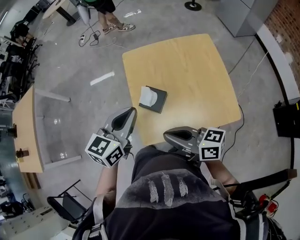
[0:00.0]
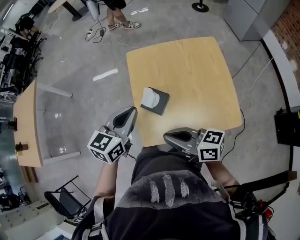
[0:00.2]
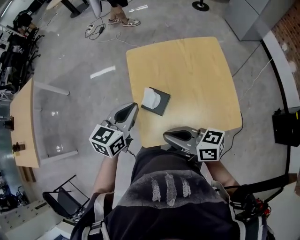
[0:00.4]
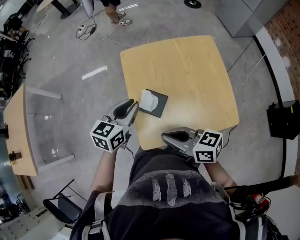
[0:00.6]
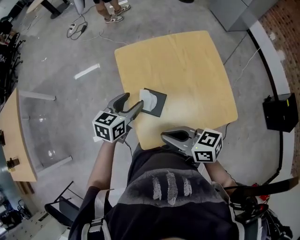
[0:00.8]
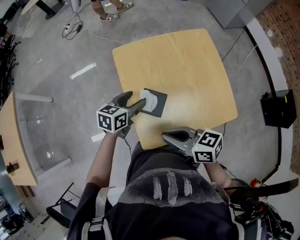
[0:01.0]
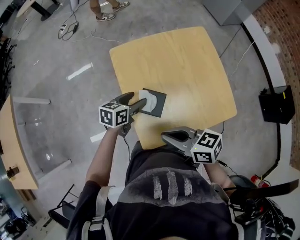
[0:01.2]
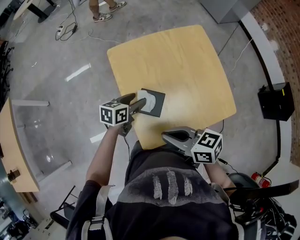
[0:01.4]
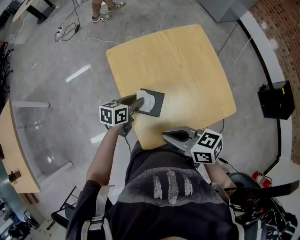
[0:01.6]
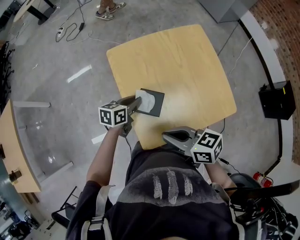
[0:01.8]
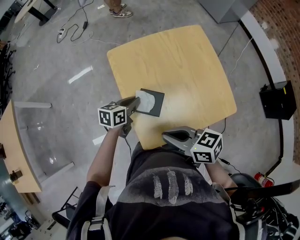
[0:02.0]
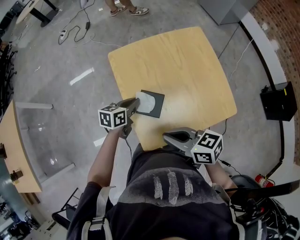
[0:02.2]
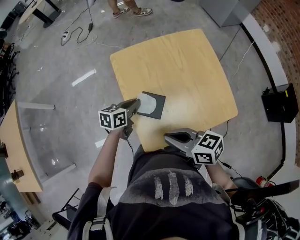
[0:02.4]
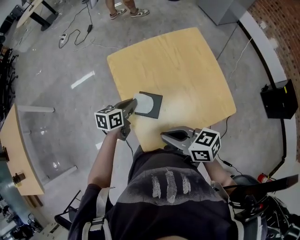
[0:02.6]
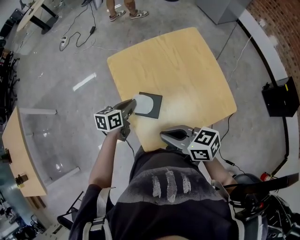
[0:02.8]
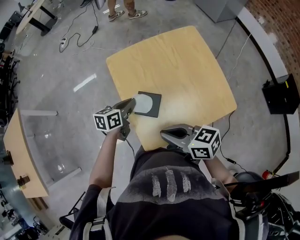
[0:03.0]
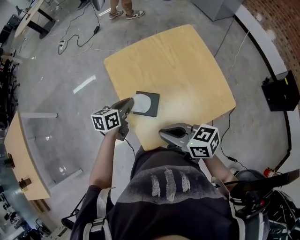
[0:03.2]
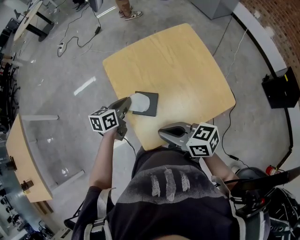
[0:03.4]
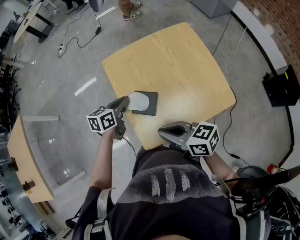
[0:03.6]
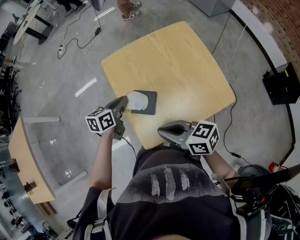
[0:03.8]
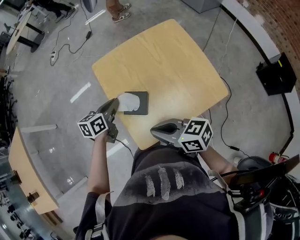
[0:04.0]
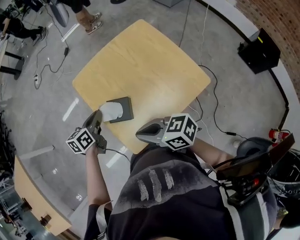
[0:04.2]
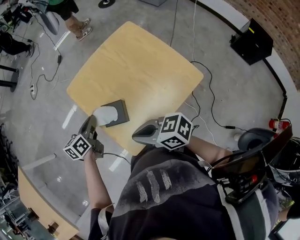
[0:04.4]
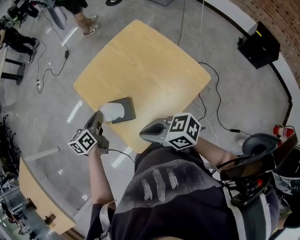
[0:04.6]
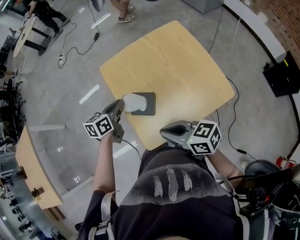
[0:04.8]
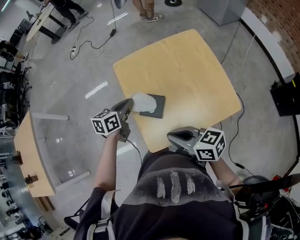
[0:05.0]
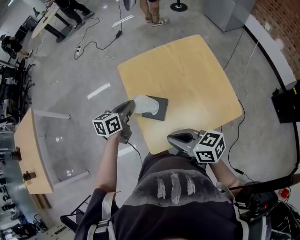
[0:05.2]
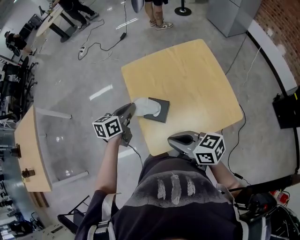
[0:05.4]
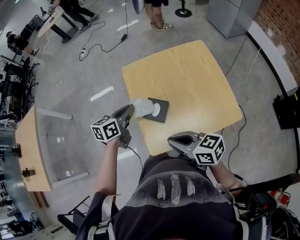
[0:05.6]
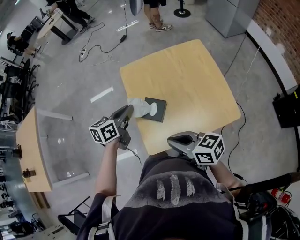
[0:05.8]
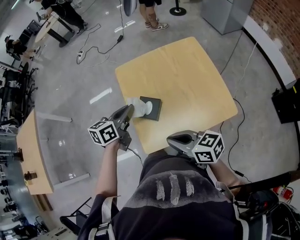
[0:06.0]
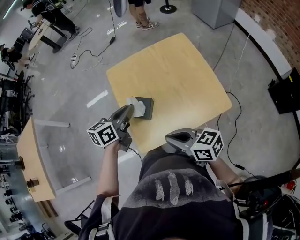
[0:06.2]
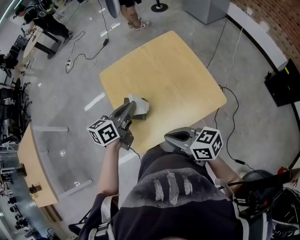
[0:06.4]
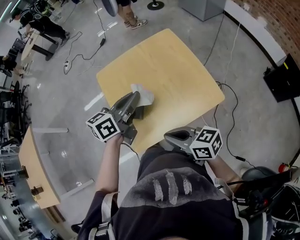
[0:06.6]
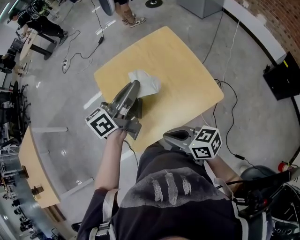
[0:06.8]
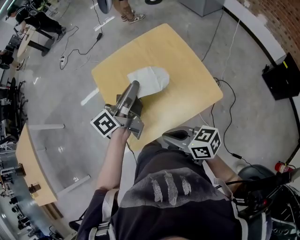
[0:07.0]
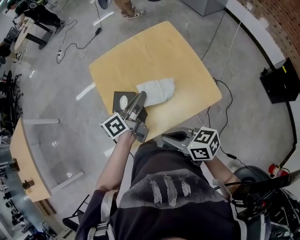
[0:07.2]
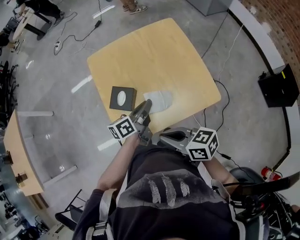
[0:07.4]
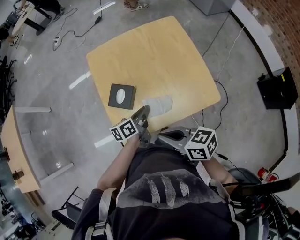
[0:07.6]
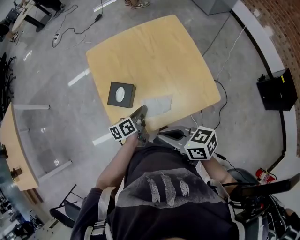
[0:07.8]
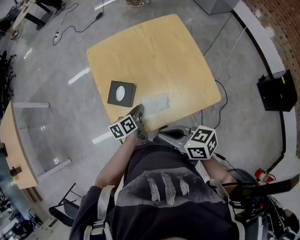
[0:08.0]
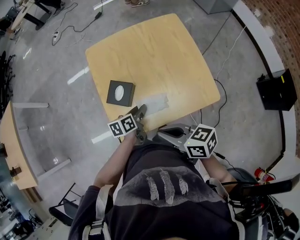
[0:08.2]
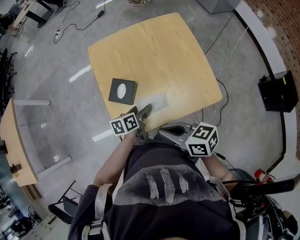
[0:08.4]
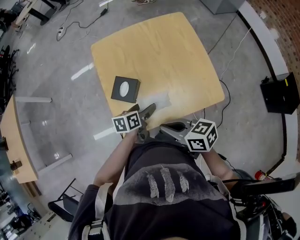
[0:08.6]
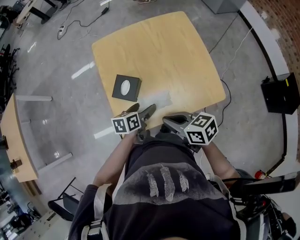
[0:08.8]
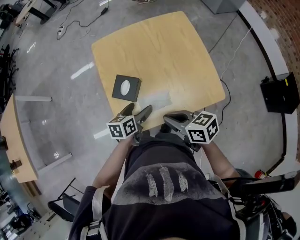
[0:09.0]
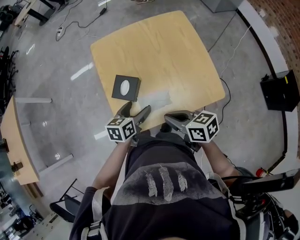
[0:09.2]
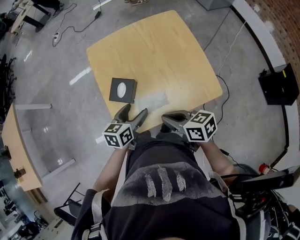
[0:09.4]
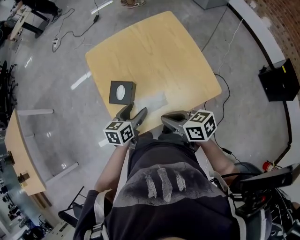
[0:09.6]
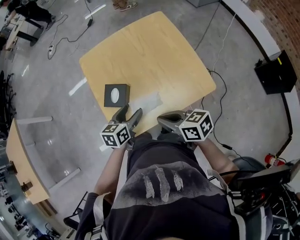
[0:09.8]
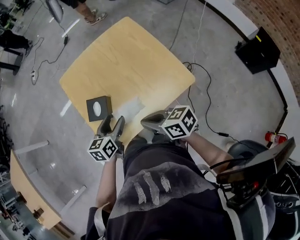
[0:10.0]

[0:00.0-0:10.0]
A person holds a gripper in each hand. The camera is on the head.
0:00.0 to 0:01.4: The left gripper is displaced downward and forward by about 25 cm, turns by about 30 degrees, and opens its fingers, while the right gripper shifts approximately 5 cm forward and downward.
0:01.4 to 0:02.8: The left gripper closes its fingers.
0:02.8 to 0:04.2: There are only small adjustments of the grippers.
0:04.2 to 0:05.8: The left gripper is displaced upward by about 5 cm.
0:05.8 to 0:07.2: The left gripper heads to the right, covering some 20 cm, and changes its angle by roughly 30 degrees. Meanwhile the right gripper moves to the right, some 10 cm.
0:07.2 to 0:08.6: The left gripper is displaced downward by about 15 cm, angles its fingers downward, by approximately 40 degrees, and opens up.
0:08.6 to 0:10.0: The left gripper is displaced upward by some 10 cm, and rotates roughly 30 degrees.

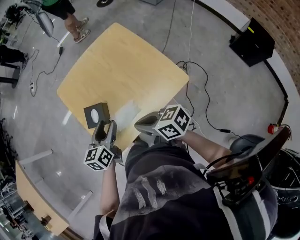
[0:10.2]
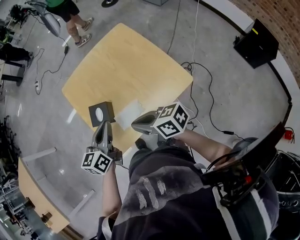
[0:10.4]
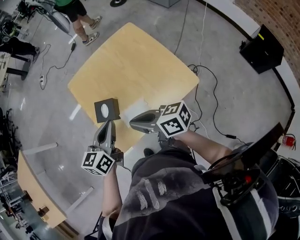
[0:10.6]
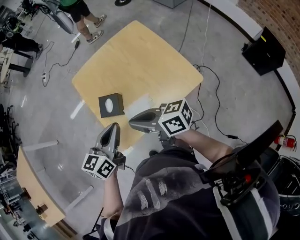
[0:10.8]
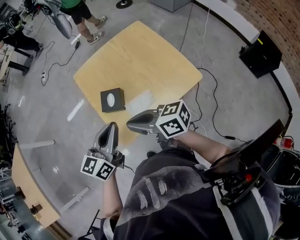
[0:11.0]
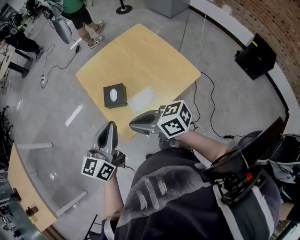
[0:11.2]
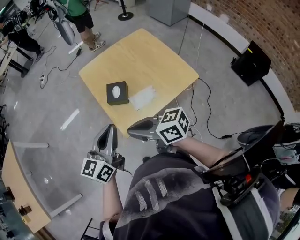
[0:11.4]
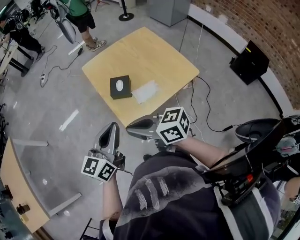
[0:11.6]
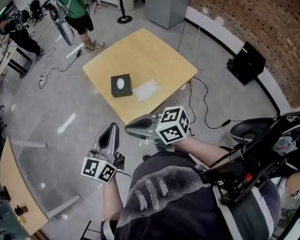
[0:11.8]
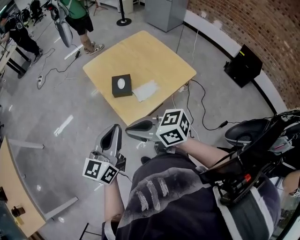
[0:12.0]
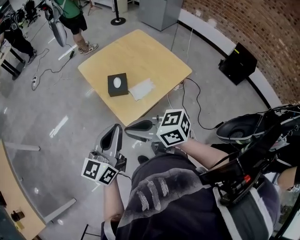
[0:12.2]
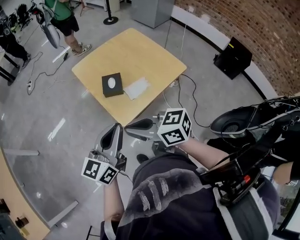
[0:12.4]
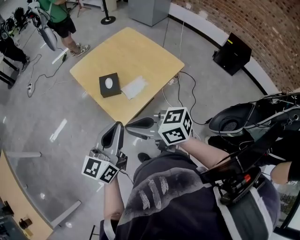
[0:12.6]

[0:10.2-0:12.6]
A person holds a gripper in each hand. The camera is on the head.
0:10.2 to 0:11.4: The left gripper shifts approximately 20 cm to the left, upward and backward, turns by about 20 degrees, and closes up. The right gripper travels to the left and upward by roughly 20 cm.
0:11.4 to 0:12.6: The grippers both shift backward by roughly 5 cm.

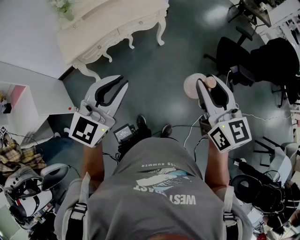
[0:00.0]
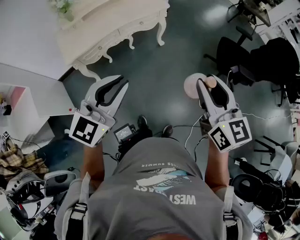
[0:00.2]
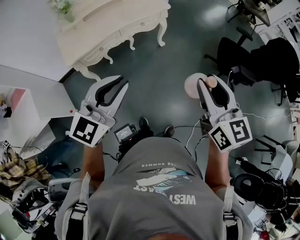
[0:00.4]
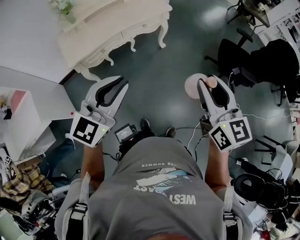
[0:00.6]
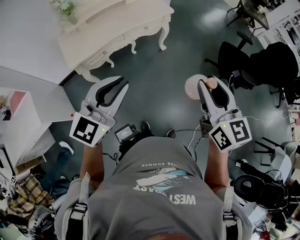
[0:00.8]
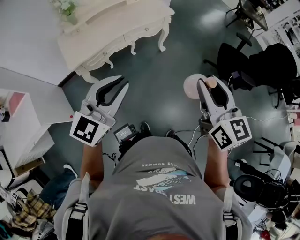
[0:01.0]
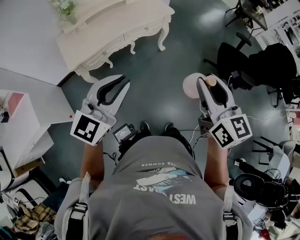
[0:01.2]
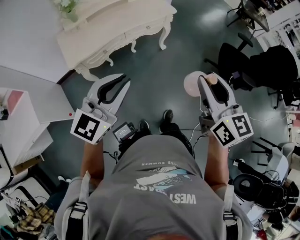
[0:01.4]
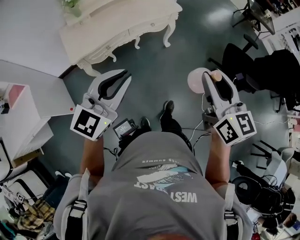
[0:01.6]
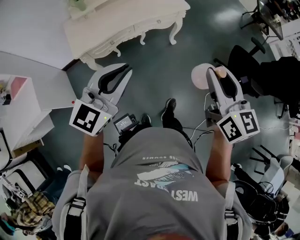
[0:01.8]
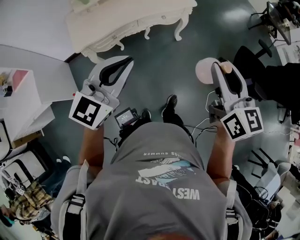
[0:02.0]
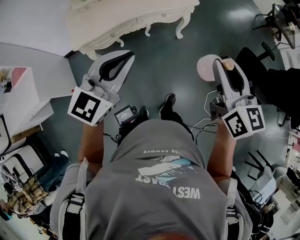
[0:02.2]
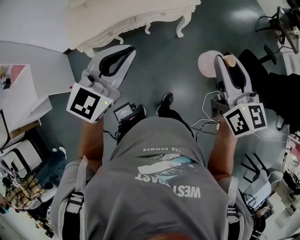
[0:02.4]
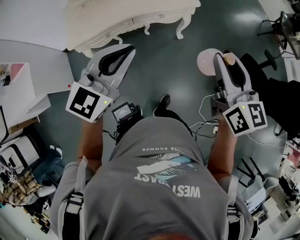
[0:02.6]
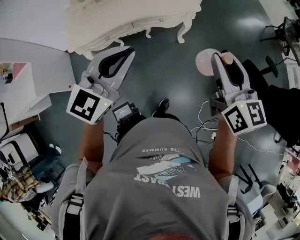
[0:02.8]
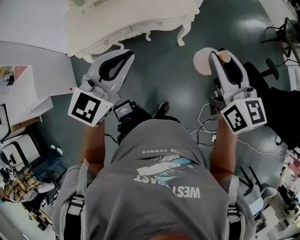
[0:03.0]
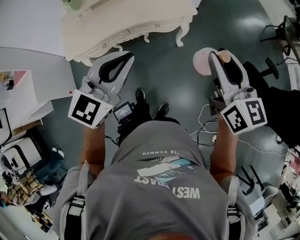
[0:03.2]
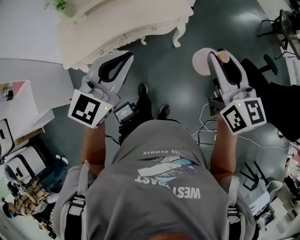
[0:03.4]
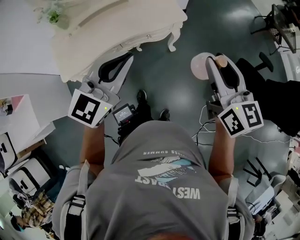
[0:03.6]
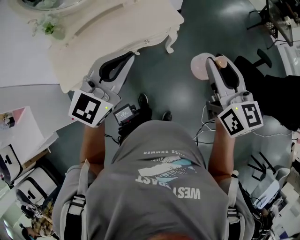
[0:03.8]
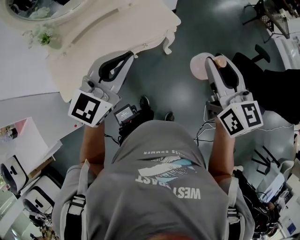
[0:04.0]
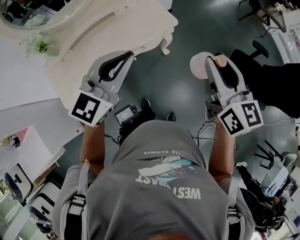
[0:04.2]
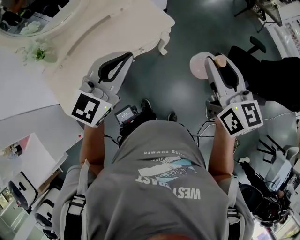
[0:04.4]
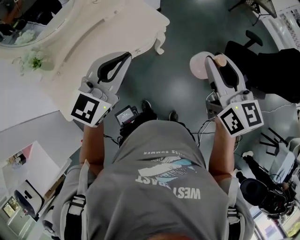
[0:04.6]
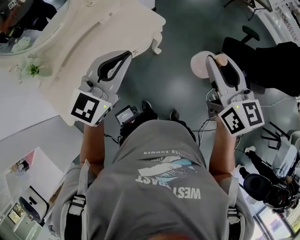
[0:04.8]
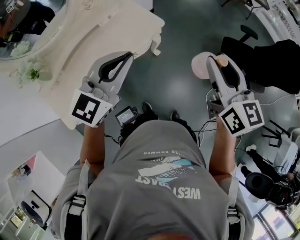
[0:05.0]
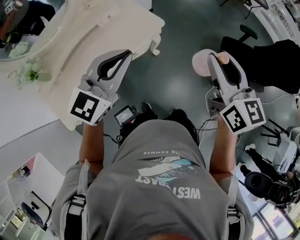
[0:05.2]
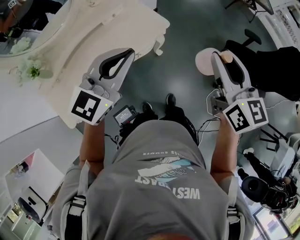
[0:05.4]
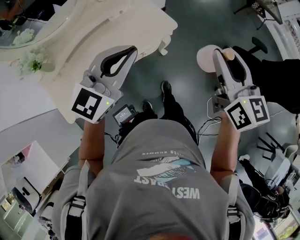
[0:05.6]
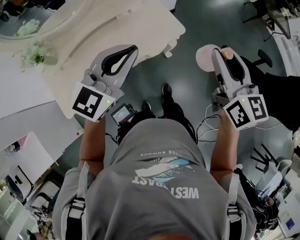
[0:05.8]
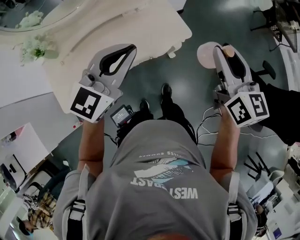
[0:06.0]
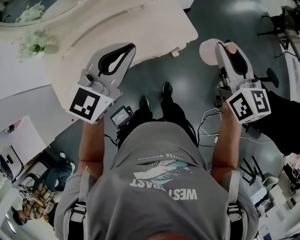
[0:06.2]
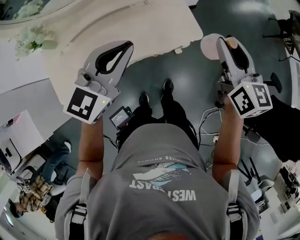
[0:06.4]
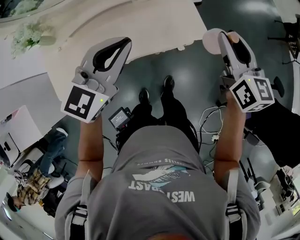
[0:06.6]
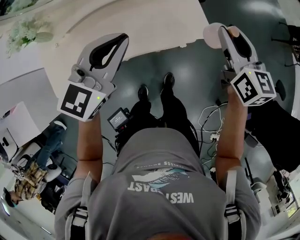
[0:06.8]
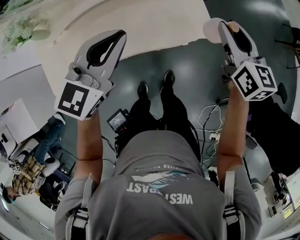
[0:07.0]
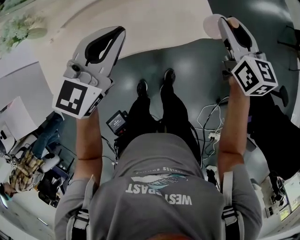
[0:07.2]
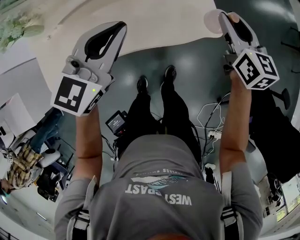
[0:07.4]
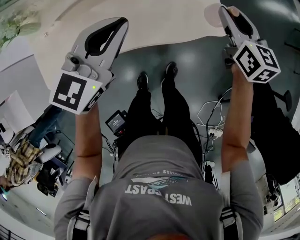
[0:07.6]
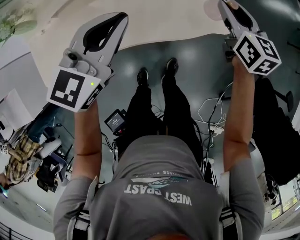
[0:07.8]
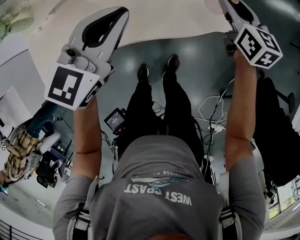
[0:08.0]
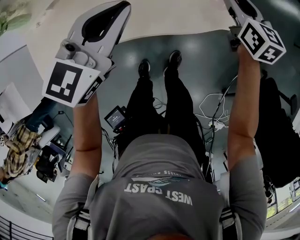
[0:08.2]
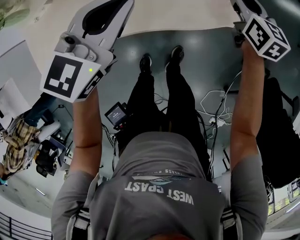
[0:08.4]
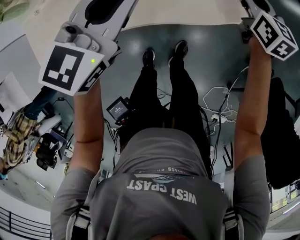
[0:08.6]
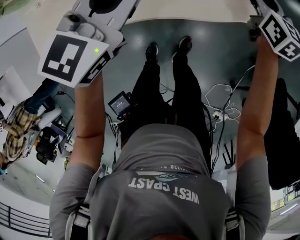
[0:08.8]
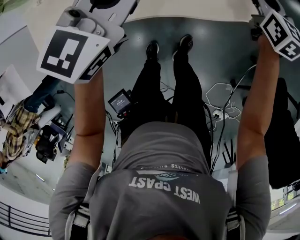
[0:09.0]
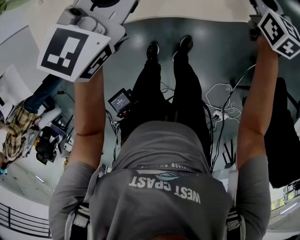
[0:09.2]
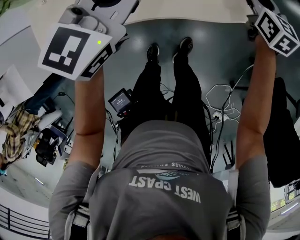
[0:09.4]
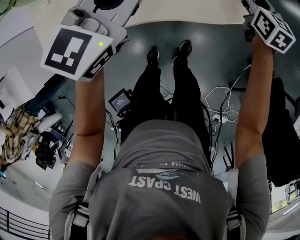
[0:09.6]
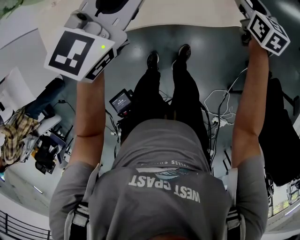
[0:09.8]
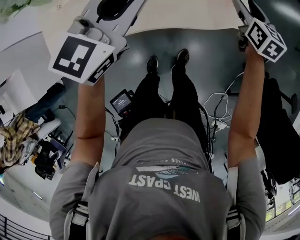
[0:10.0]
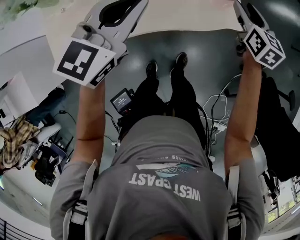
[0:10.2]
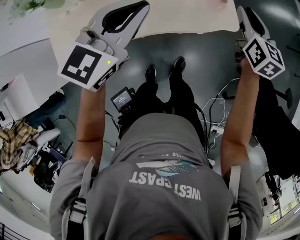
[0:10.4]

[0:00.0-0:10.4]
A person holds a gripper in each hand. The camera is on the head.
0:00.0 to 0:01.4: The left gripper travels to the left by roughly 10 cm. Meanwhile the right gripper moves to the left and forward, approximately 15 cm.
0:01.4 to 0:03.0: The right gripper heads forward, covering roughly 30 cm. The left gripper shifts roughly 30 cm forward and to the right.
0:03.0 to 0:04.4: The left gripper heads forward, covering roughly 20 cm, and turns by some 20 degrees, while the right gripper travels forward by about 15 cm, and swivels about 20 degrees.
0:04.4 to 0:06.0: The two grippers go roughly 20 cm forward and to the left.
0:06.0 to 0:07.4: The left gripper goes about 25 cm downward, forward and to the left, and turns by approximately 20 degrees. The right gripper moves downward and forward, about 35 cm.
0:07.4 to 0:09.0: The two grippers go about 15 cm downward.
0:09.0 to 0:10.4: The right gripper is displaced upward, backward and to the right by approximately 20 cm, and opens, then closes again; the left gripper goes about 15 cm upward and backward.
